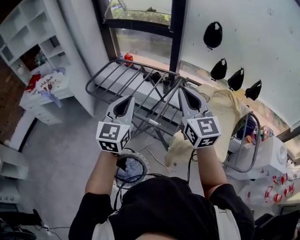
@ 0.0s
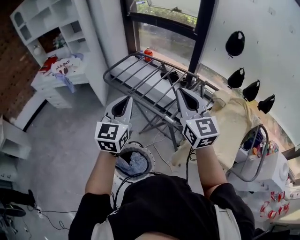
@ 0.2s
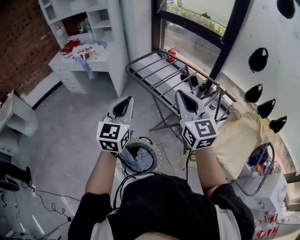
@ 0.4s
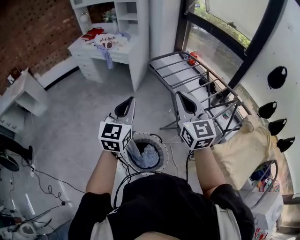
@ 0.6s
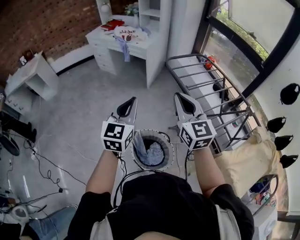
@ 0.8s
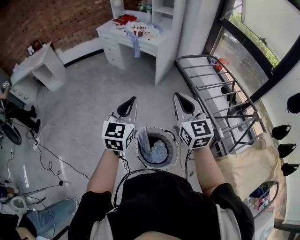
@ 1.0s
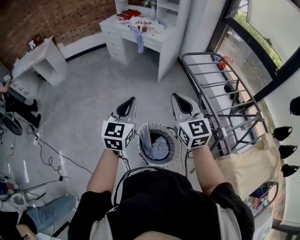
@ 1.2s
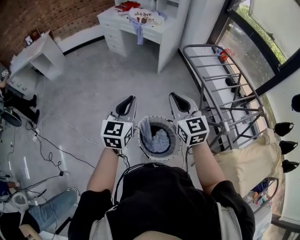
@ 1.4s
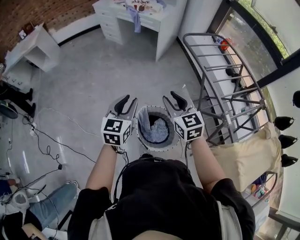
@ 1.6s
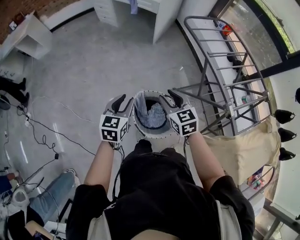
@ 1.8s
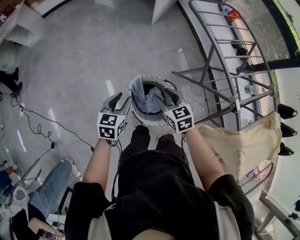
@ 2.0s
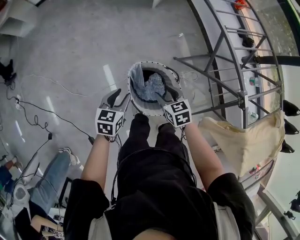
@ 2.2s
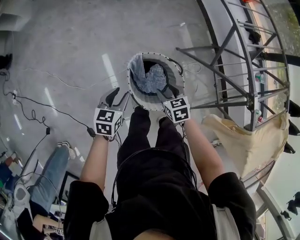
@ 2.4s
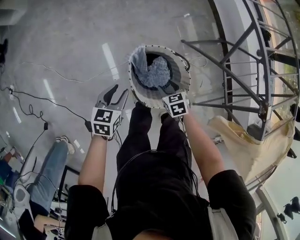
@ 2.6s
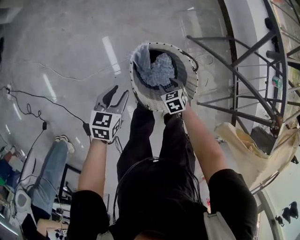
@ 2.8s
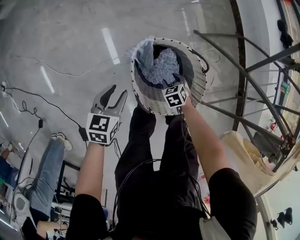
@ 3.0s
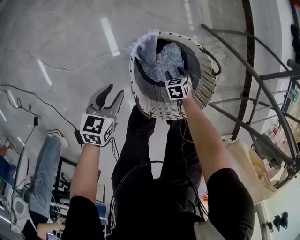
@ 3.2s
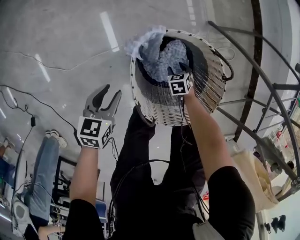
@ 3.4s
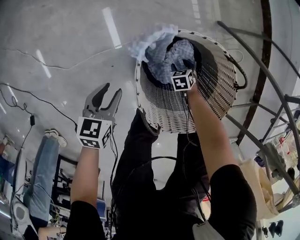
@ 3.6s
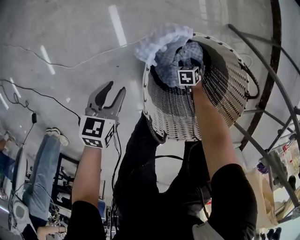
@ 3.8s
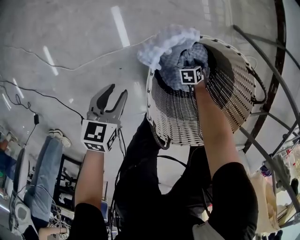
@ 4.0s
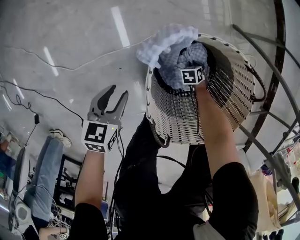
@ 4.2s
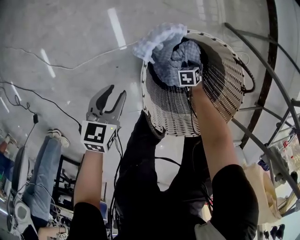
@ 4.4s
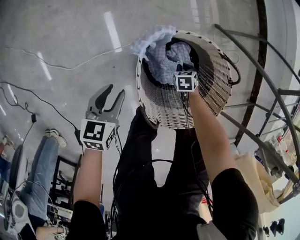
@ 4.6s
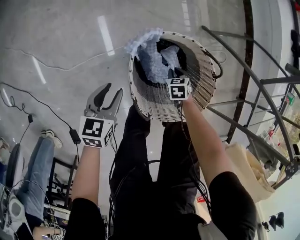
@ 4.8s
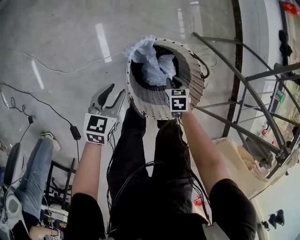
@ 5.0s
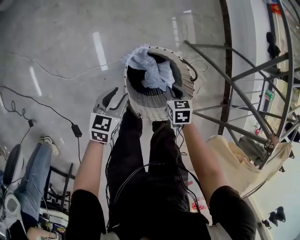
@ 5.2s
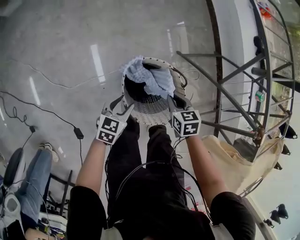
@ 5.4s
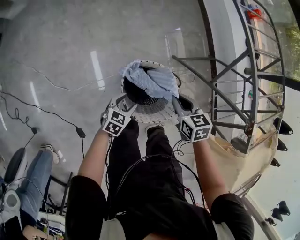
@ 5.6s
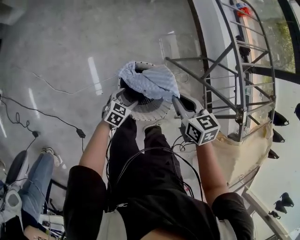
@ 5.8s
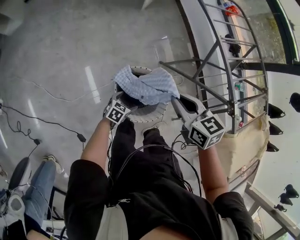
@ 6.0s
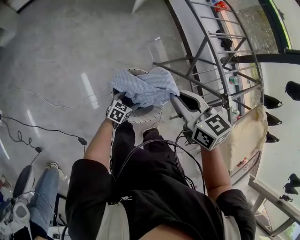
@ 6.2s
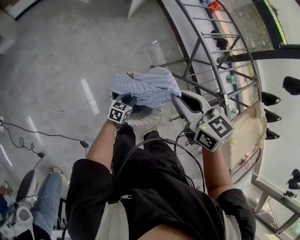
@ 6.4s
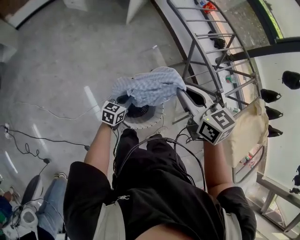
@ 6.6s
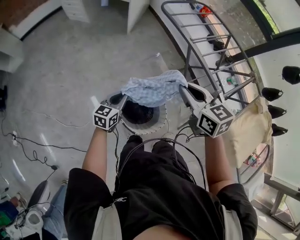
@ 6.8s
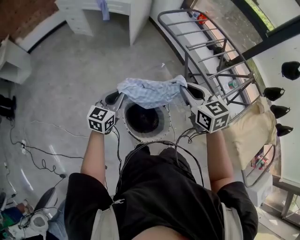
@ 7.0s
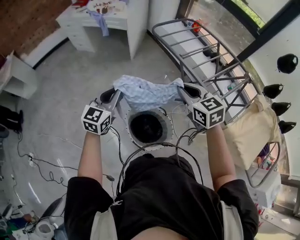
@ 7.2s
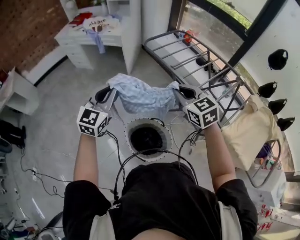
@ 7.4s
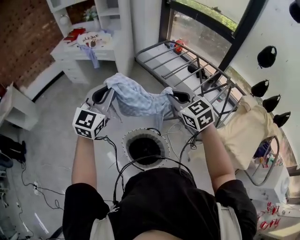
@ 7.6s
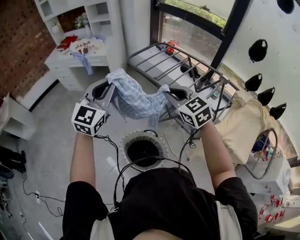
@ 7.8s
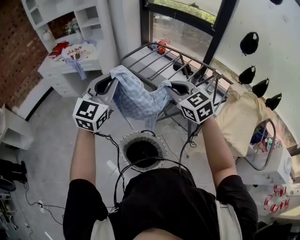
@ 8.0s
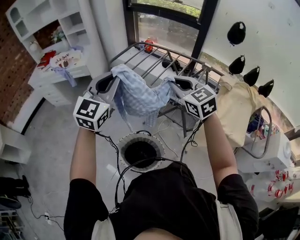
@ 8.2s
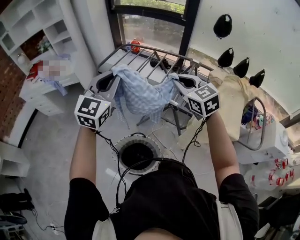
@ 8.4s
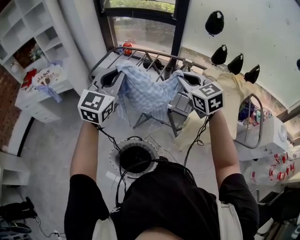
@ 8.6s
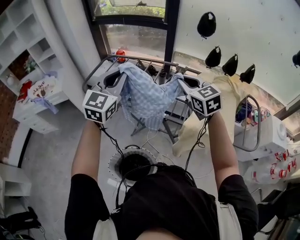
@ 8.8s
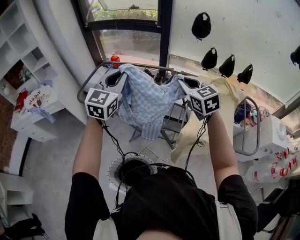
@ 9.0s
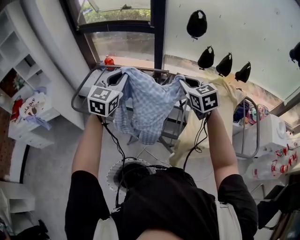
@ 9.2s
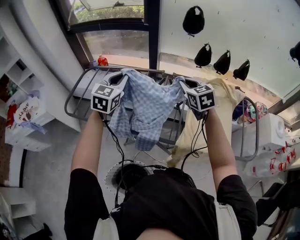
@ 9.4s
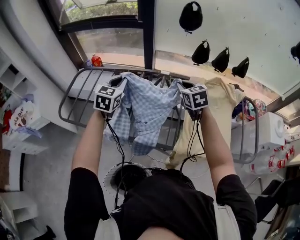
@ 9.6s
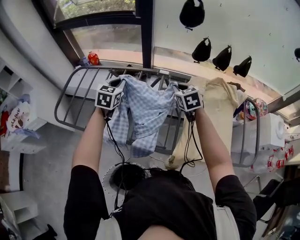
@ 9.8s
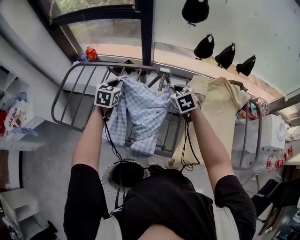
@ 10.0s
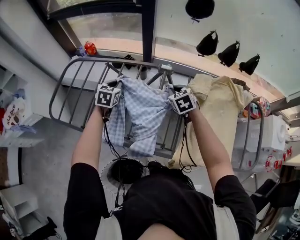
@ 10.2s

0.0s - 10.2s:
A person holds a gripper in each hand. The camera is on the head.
0.0s - 1.4s: The pair of grippers is taken approximately 50 cm. The right gripper swivels some 50 degrees. The left gripper swivels approximately 50 degrees.
1.4s - 3.0s: Both grippers travel together downward, some 70 cm. The right gripper tips its fingers downward by some 60 degrees, and opens. Meanwhile the left gripper tips its fingers downward by some 30 degrees, and opens up.
3.0s - 4.4s: Both grippers travel together downward, approximately 20 cm. The right gripper closes its fingers.
4.4s - 5.8s: The right gripper heads upward, covering approximately 70 cm, and points its fingers approximately 40 degrees further upward. The left gripper heads upward, covering some 25 cm, changes its angle by about 20 degrees, and opens.
5.8s - 7.2s: The right gripper moves upward and to the right, approximately 25 cm, and changes its angle by roughly 20 degrees, while the left gripper moves upward, roughly 40 cm, angles its fingers upward, by approximately 30 degrees, and closes up.
7.2s - 8.8s: The right gripper ends up roughly 35 cm from where it was, and turns by some 40 degrees; the left gripper moves roughly 40 cm, and rotates some 40 degrees.
8.8s - 10.2s: The left gripper moves forward and downward, approximately 50 cm, and points its fingers some 40 degrees further downward; the right gripper travels downward and forward by roughly 35 cm, and swivels about 30 degrees.

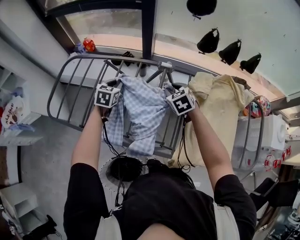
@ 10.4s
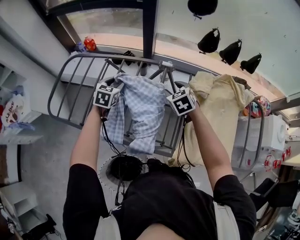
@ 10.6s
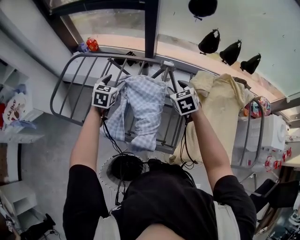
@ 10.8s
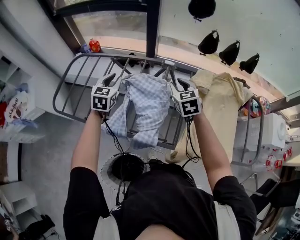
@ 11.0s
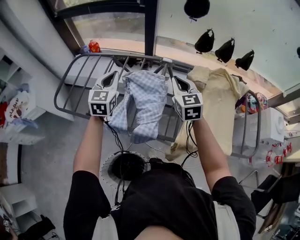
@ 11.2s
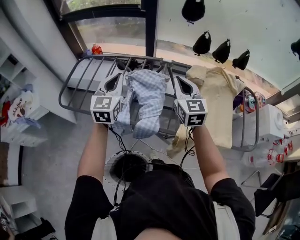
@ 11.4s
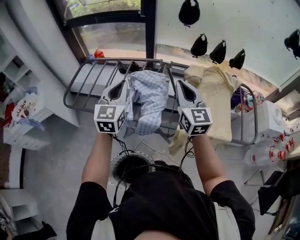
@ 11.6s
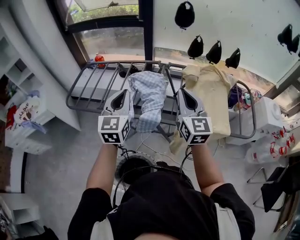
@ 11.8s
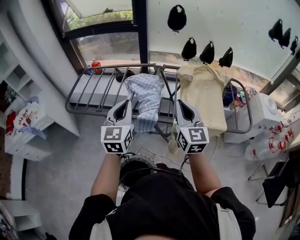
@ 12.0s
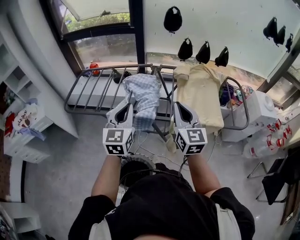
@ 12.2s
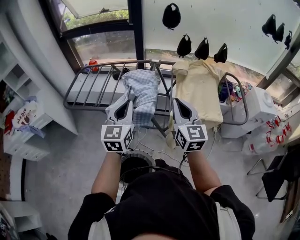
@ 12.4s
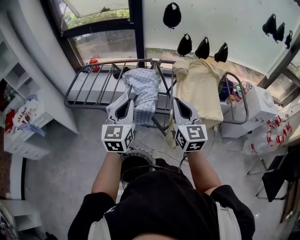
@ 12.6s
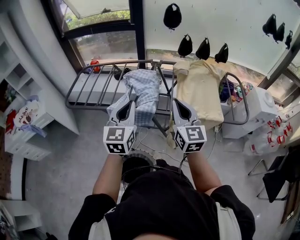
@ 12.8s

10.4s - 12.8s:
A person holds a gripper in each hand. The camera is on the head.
10.4s - 11.6s: The grippers both shift upward and backward by roughly 35 cm. The left gripper points its fingers roughly 30 degrees further upward, and opens, then closes again. The right gripper tilts its fingers approximately 50 degrees upward, and closes up.
11.6s - 12.8s: The two grippers go about 15 cm backward.

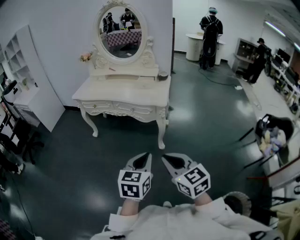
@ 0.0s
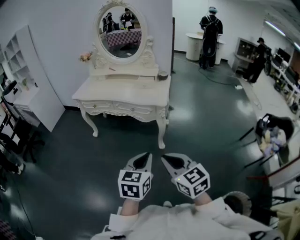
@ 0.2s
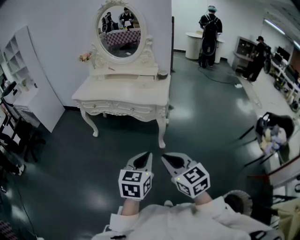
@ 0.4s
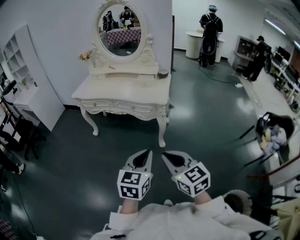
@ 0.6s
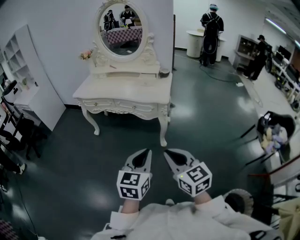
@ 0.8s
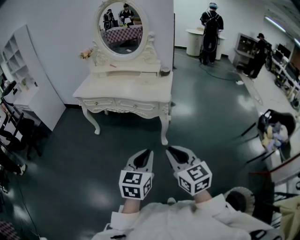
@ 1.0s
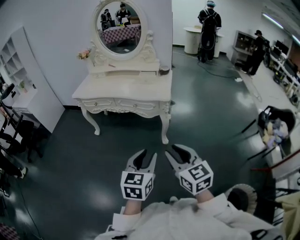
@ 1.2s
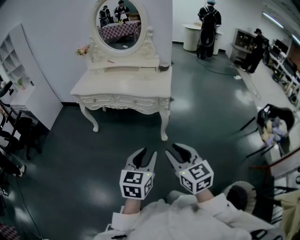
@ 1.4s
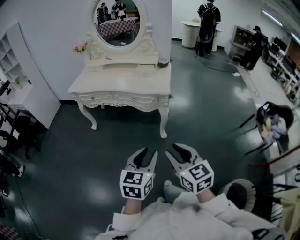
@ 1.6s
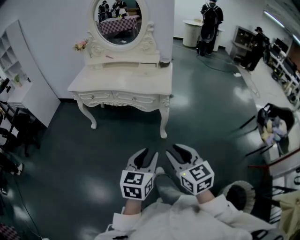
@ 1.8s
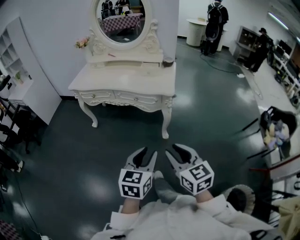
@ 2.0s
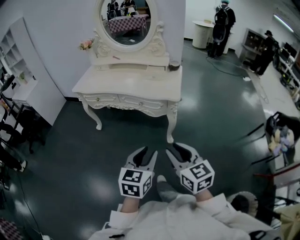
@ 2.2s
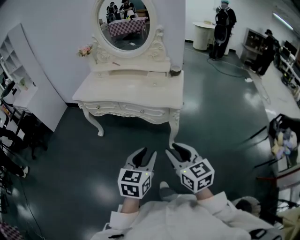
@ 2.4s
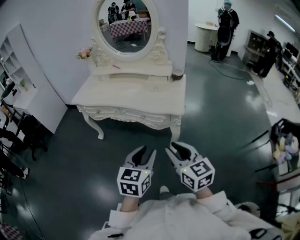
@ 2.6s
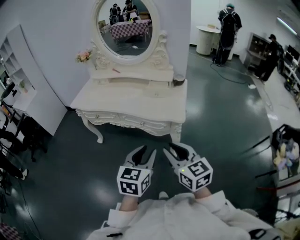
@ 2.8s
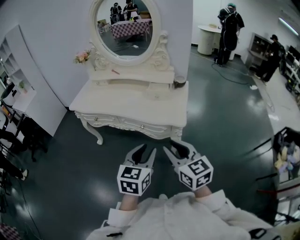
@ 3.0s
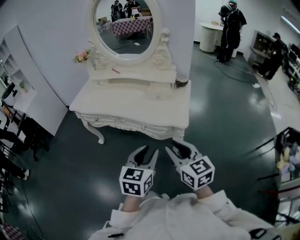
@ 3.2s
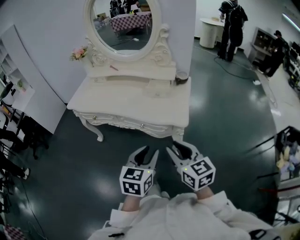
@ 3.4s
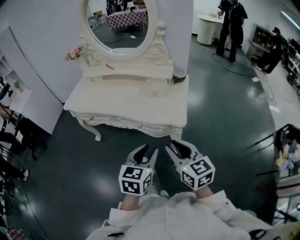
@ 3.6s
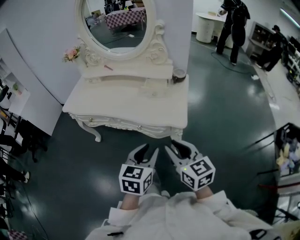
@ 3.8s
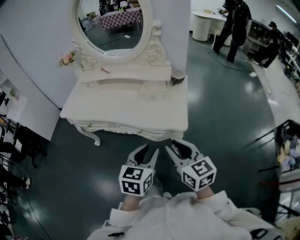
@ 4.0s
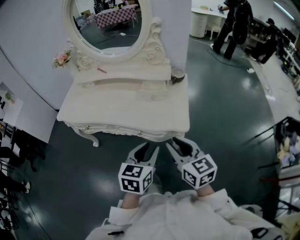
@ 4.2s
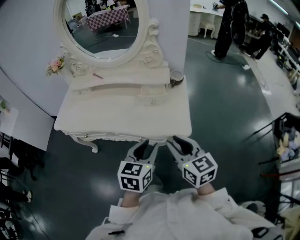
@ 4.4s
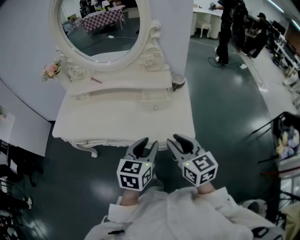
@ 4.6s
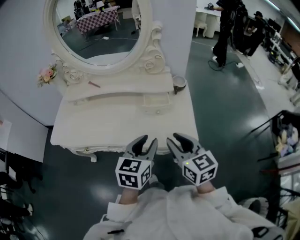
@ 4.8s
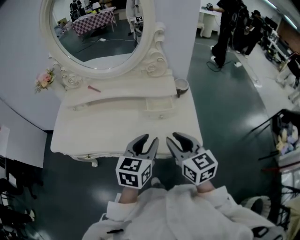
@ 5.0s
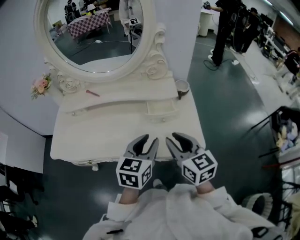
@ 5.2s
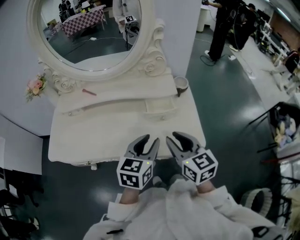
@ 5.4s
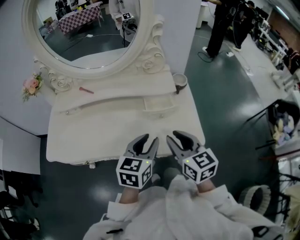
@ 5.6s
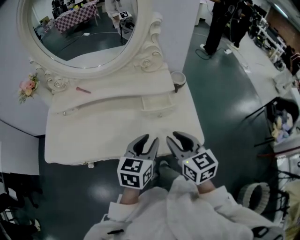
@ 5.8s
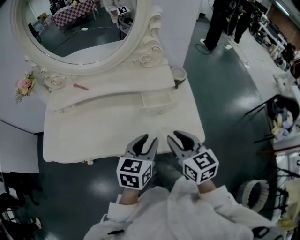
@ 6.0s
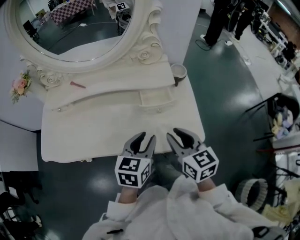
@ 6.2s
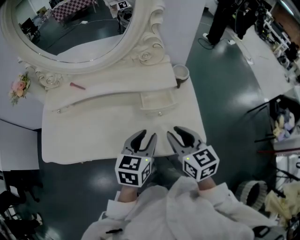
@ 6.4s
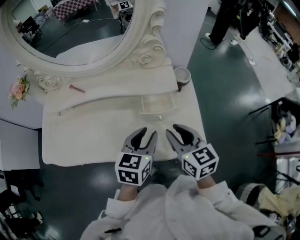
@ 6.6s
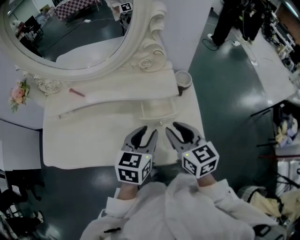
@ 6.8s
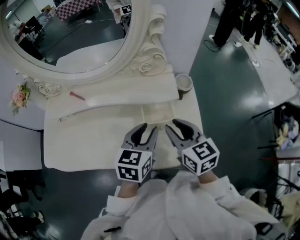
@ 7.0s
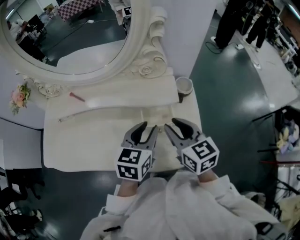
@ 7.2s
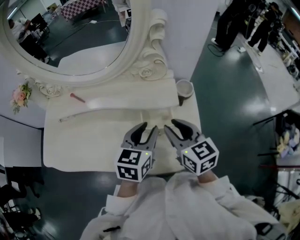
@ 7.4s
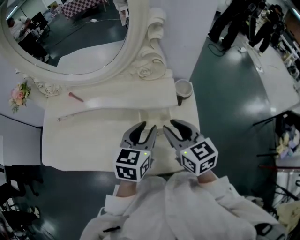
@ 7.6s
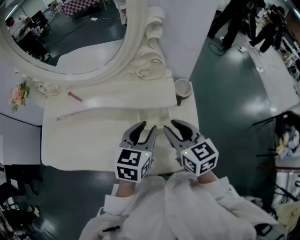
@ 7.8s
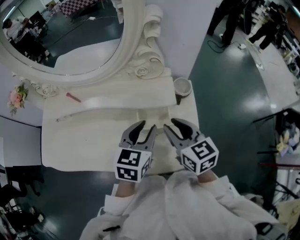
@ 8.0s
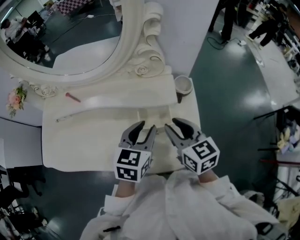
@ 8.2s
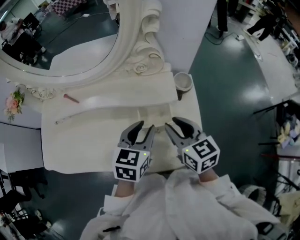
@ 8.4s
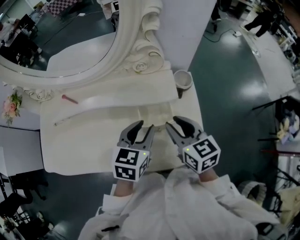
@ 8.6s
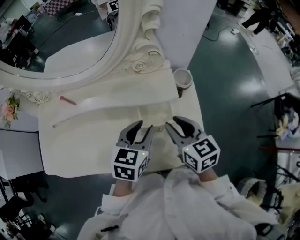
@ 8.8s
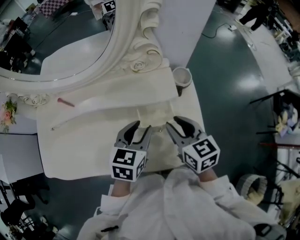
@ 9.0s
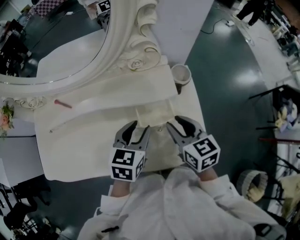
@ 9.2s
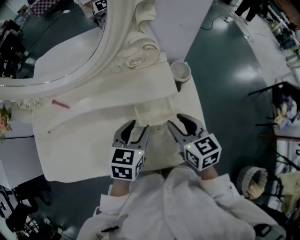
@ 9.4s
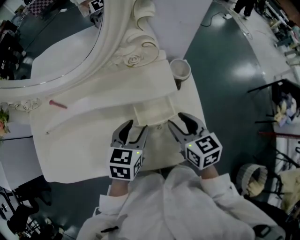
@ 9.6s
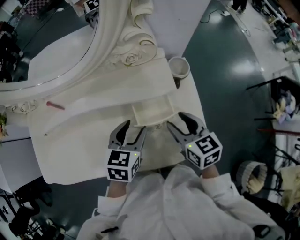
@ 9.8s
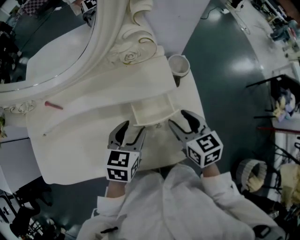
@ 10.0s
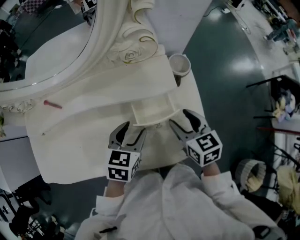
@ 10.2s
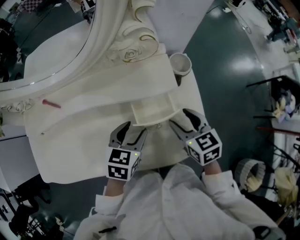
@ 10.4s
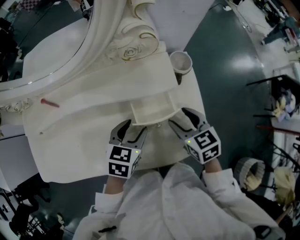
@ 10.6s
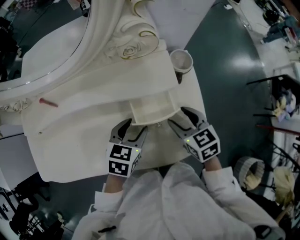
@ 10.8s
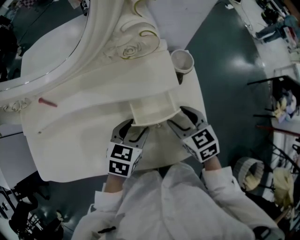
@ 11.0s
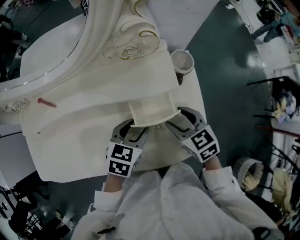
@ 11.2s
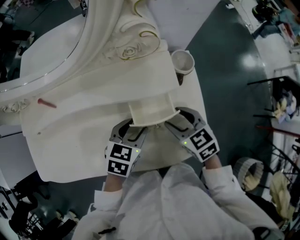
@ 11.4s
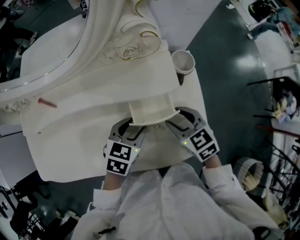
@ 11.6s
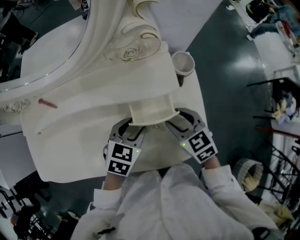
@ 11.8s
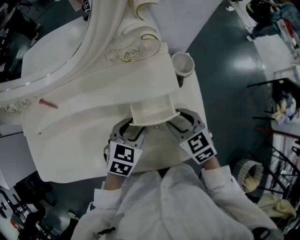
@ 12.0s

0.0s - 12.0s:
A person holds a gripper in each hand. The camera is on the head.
0.0s - 1.6s: The right gripper opens. The left gripper opens its fingers.
1.6s - 3.0s: The grippers both shift forward by about 30 cm.
3.0s - 4.4s: The grippers both shift forward by roughly 15 cm.
4.4s - 6.0s: The grippers both shift forward and to the left by about 15 cm.
6.0s - 7.6s: The two grippers go roughly 15 cm forward.
7.6s - 9.0s: The left gripper shifts by approximately 5 cm.
9.0s - 10.4s: The grippers both shift downward by roughly 5 cm. The right gripper opens.
10.4s - 12.0s: The grippers stay close to where they were, moving slightly.
